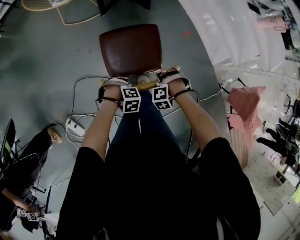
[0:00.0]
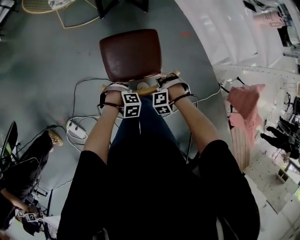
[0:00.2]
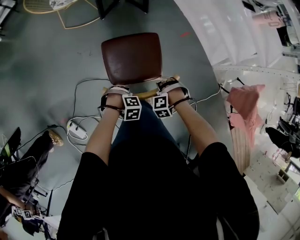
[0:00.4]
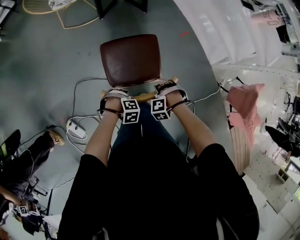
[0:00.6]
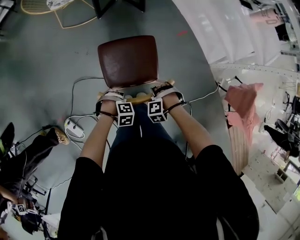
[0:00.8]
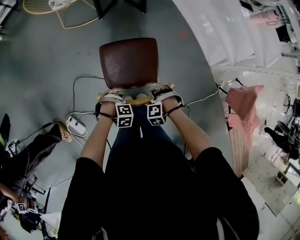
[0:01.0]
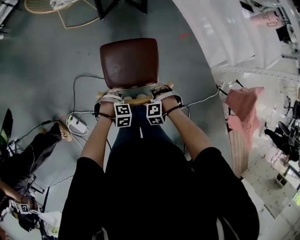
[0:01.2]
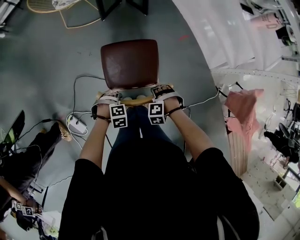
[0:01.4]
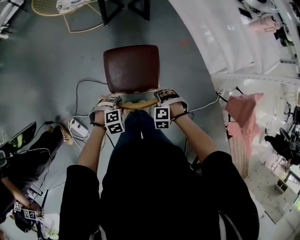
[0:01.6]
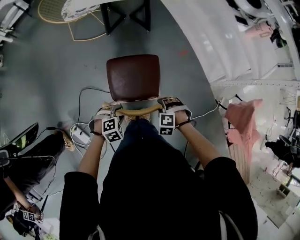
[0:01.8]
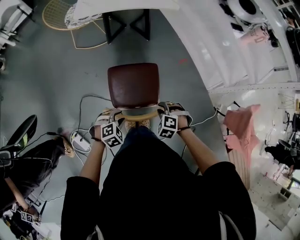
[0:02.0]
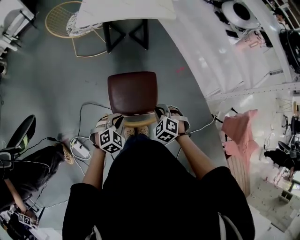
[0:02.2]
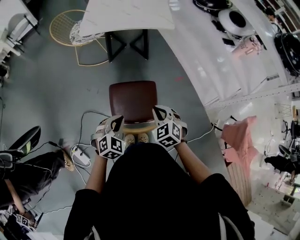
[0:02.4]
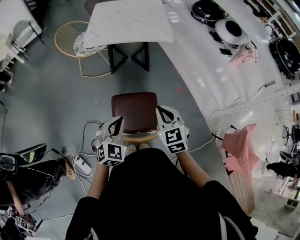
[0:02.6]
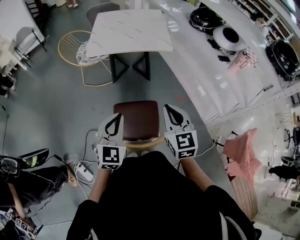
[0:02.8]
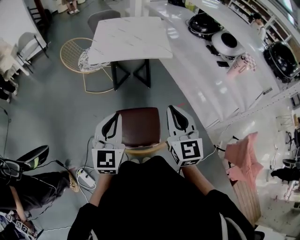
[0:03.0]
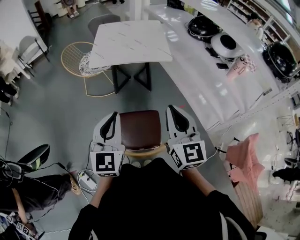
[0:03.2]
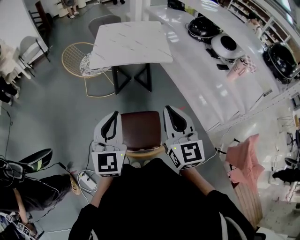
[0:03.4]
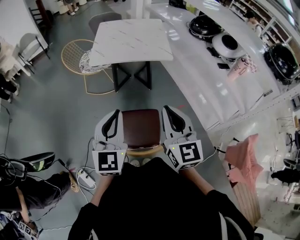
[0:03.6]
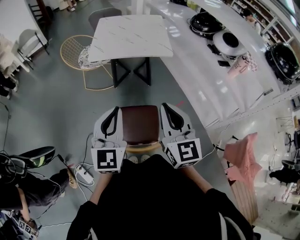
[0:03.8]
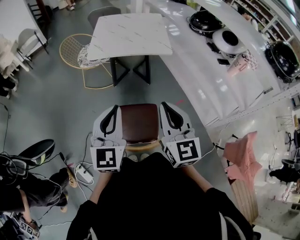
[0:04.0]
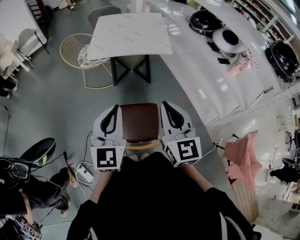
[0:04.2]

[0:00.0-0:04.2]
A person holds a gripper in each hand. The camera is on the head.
0:00.0 to 0:01.4: The right gripper moves some 10 cm. Meanwhile the left gripper shifts by some 10 cm, and opens its fingers.
0:01.4 to 0:02.8: The grippers both shift upward by roughly 40 cm. The right gripper angles its fingers upward, by some 70 degrees, and closes its fingers, while the left gripper tilts its fingers roughly 70 degrees upward, and closes its fingers.
0:02.8 to 0:04.2: Both grippers travel together upward, approximately 10 cm.

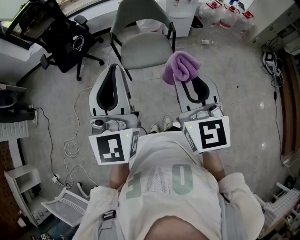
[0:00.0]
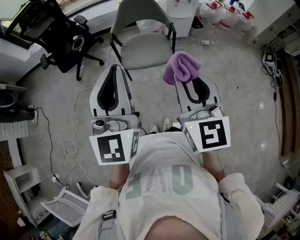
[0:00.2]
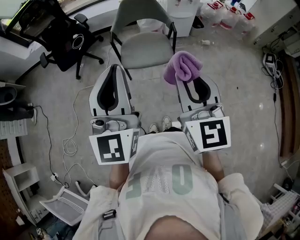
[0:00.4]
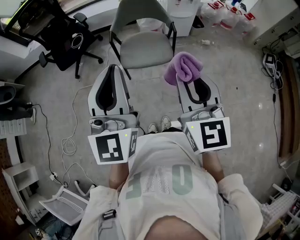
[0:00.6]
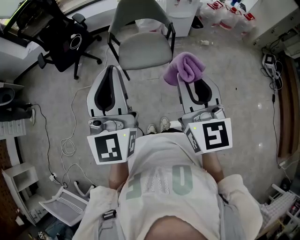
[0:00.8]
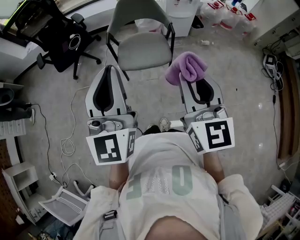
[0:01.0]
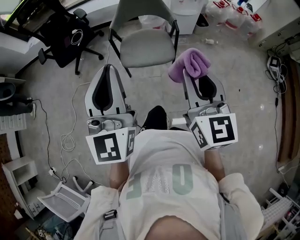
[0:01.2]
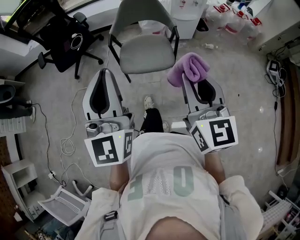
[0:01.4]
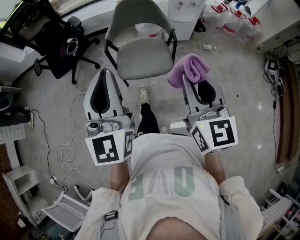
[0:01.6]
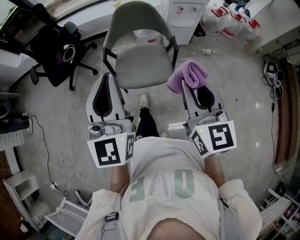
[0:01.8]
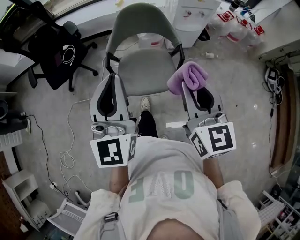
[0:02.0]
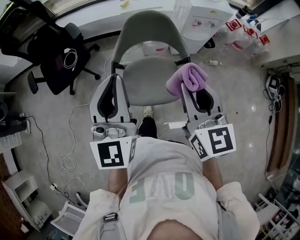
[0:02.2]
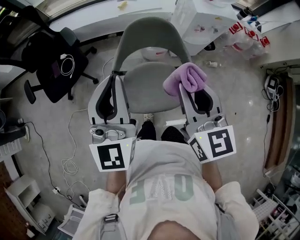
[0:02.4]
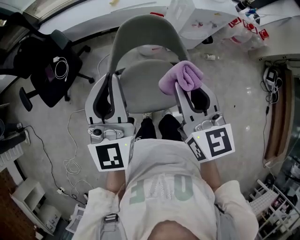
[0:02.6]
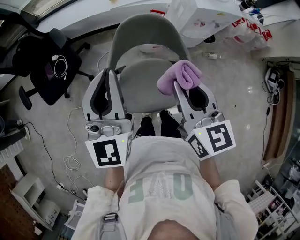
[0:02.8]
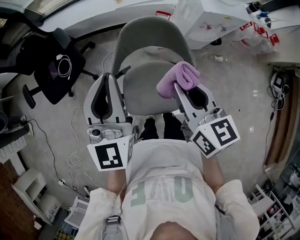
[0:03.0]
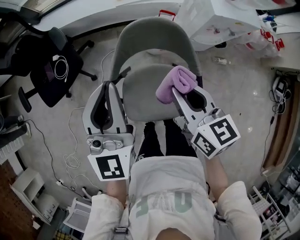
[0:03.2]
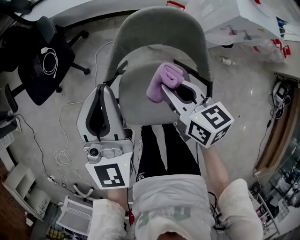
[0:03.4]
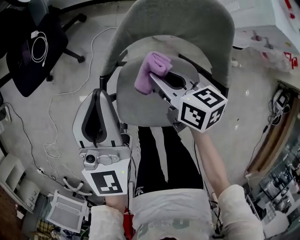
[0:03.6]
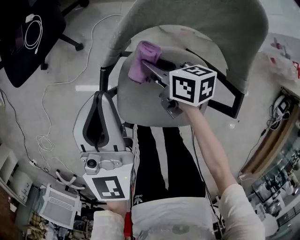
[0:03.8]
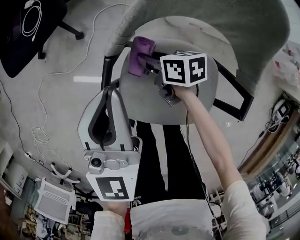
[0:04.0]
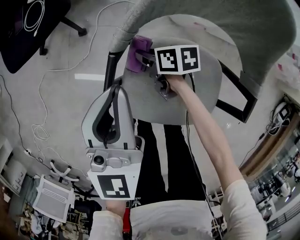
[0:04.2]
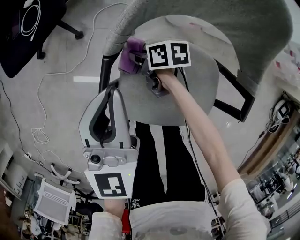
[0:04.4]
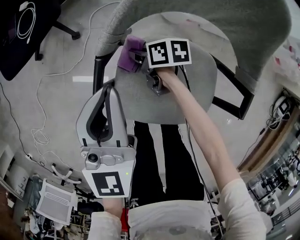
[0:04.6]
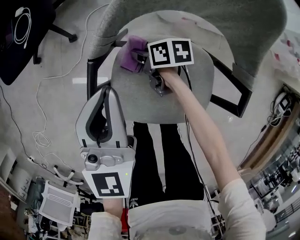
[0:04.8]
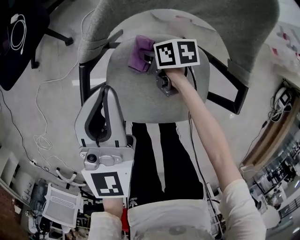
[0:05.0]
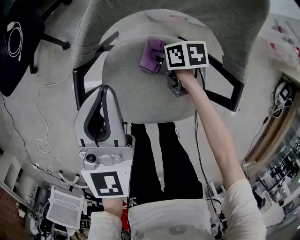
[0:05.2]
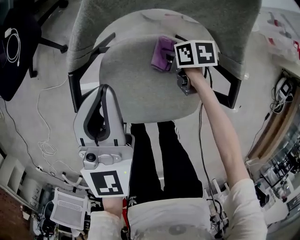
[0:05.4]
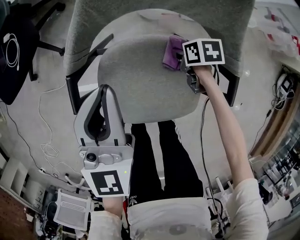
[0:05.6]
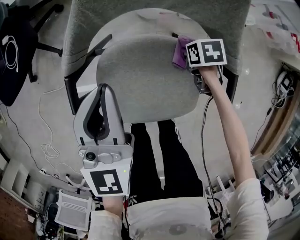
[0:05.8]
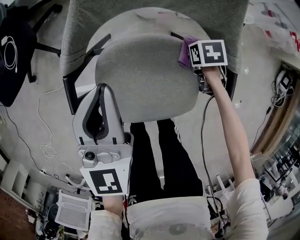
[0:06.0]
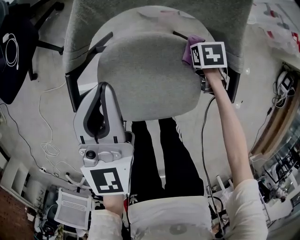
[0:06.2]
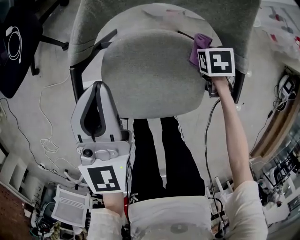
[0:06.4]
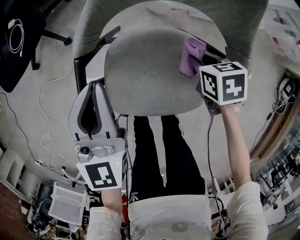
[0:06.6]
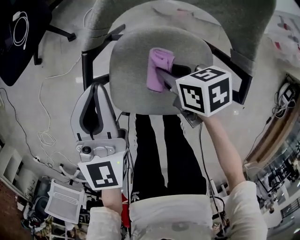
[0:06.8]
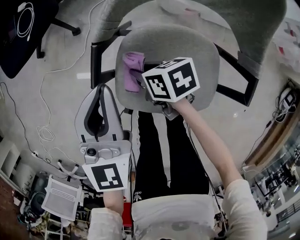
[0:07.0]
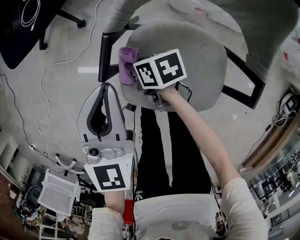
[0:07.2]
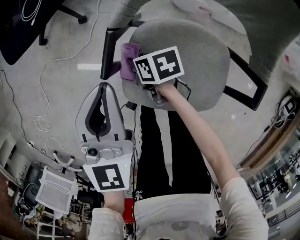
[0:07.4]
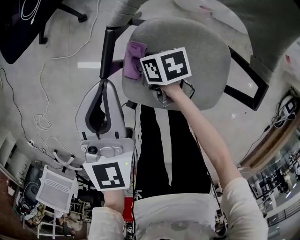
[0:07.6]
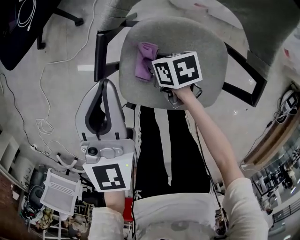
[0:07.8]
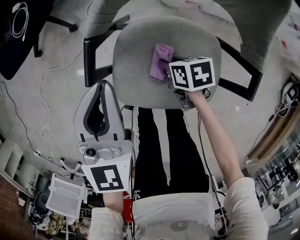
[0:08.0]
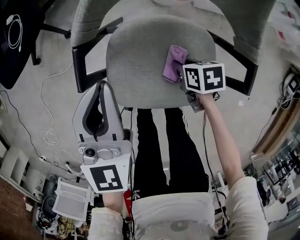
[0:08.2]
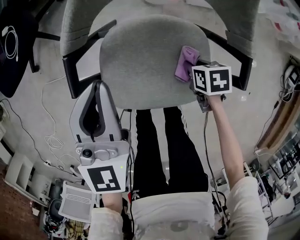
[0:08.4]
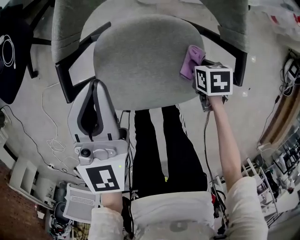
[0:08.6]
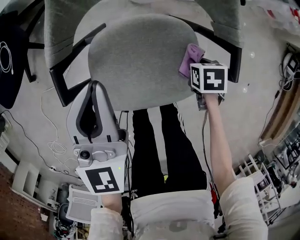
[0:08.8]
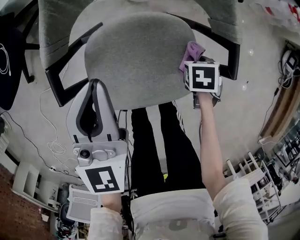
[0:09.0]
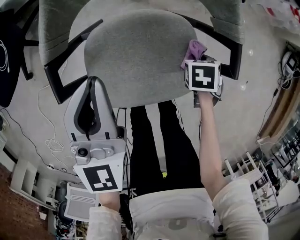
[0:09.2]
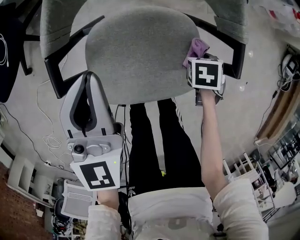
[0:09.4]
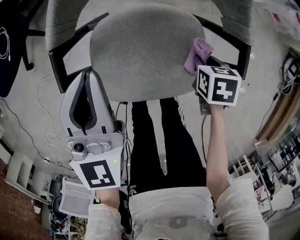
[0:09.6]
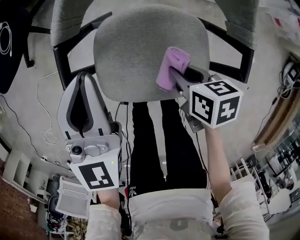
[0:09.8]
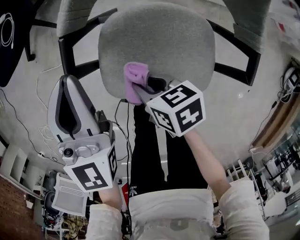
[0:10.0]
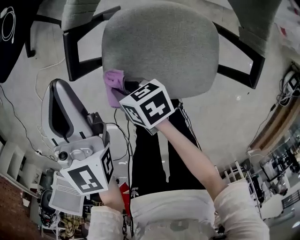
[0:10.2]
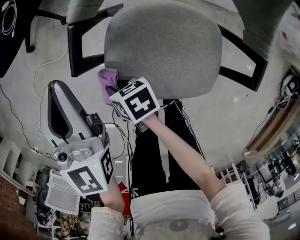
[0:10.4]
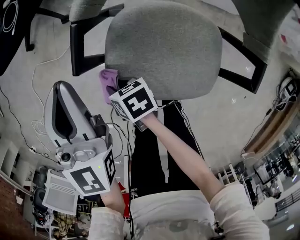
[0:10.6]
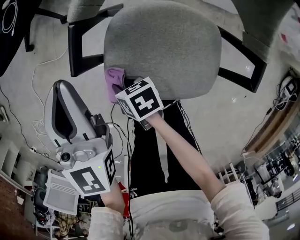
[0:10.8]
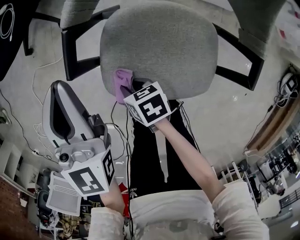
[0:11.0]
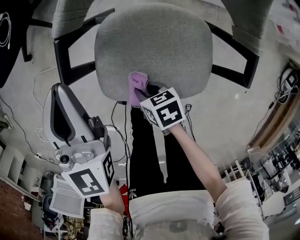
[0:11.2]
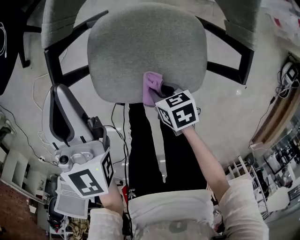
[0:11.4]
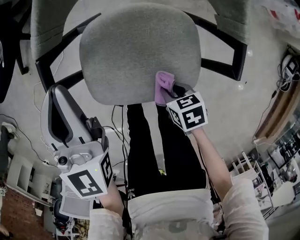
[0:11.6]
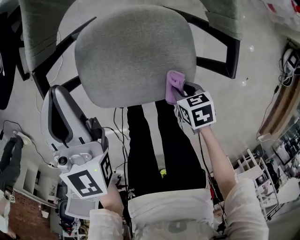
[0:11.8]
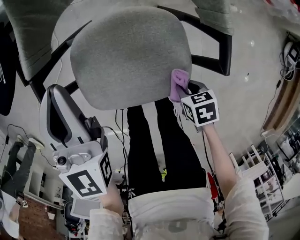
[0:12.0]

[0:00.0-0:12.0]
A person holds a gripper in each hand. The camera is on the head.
0:00.0 to 0:01.6: The left gripper moves forward, approximately 15 cm; the right gripper shifts some 15 cm forward and to the right.
0:01.6 to 0:03.0: Both grippers are carried forward, some 40 cm. The right gripper changes its angle by some 20 degrees.
0:03.0 to 0:04.4: The left gripper heads downward, covering about 35 cm. The right gripper heads downward, covering some 50 cm, and changes its angle by approximately 60 degrees.
0:04.4 to 0:06.0: The left gripper changes place by some 10 cm. Meanwhile the right gripper ends up approximately 35 cm from where it was, and tips its fingers downward by some 40 degrees.
0:06.0 to 0:07.6: The right gripper reaches some 10 cm upward, then returns, and points its fingers roughly 30 degrees further upward. The left gripper shifts by approximately 15 cm.
0:07.6 to 0:09.0: The left gripper moves some 15 cm; the right gripper ends up about 35 cm from where it was, and points its fingers roughly 30 degrees further downward.
0:09.0 to 0:10.4: The left gripper changes place by some 15 cm, and swivels approximately 20 degrees, while the right gripper travels upward and back again, roughly 10 cm each way, and angles its fingers upward, by roughly 40 degrees.
0:10.4 to 0:12.0: The right gripper moves approximately 35 cm, and turns by approximately 30 degrees. Meanwhile the left gripper ends up some 15 cm from where it was.

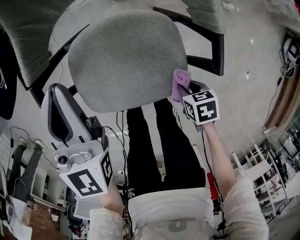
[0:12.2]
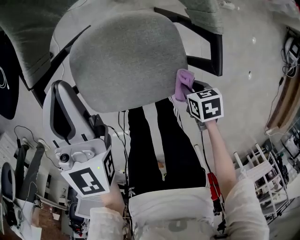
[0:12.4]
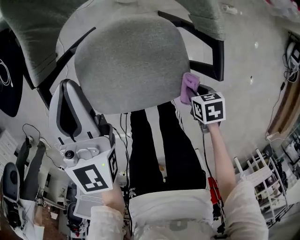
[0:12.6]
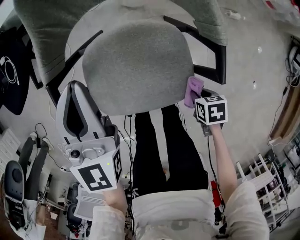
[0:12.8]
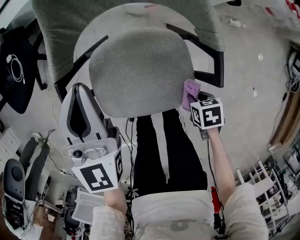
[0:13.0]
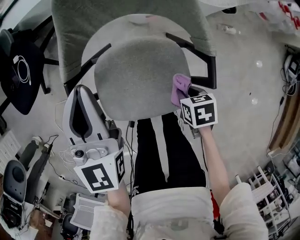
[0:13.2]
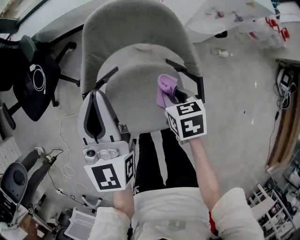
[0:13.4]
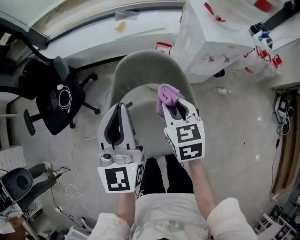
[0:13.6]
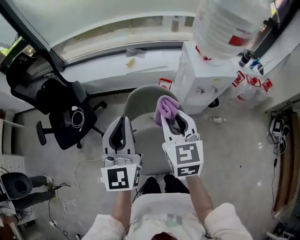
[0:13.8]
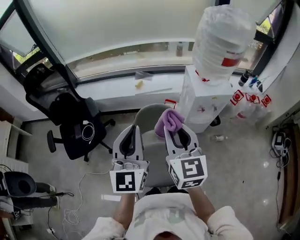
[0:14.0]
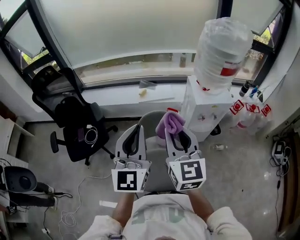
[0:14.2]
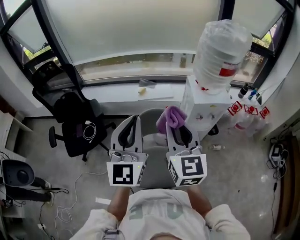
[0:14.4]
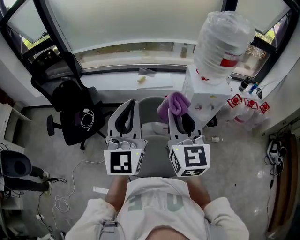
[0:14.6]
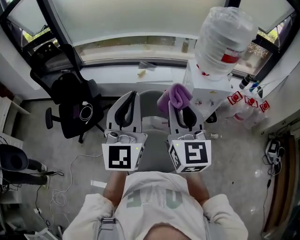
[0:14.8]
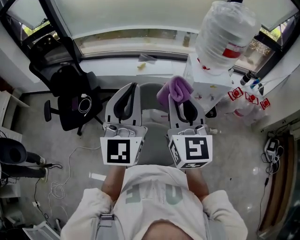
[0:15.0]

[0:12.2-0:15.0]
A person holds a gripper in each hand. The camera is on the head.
0:12.2 to 0:13.6: Both grippers move upward, some 30 cm. The right gripper points its fingers roughly 40 degrees further upward.
0:13.6 to 0:15.0: The grippers both shift upward by about 30 cm. The left gripper changes its angle by approximately 20 degrees. Meanwhile the right gripper points its fingers approximately 50 degrees further upward.

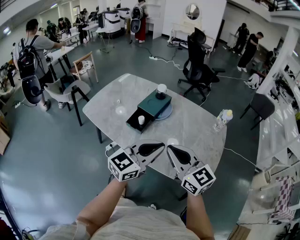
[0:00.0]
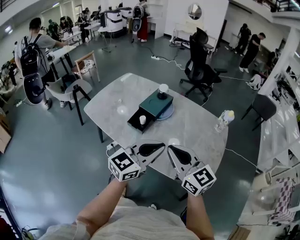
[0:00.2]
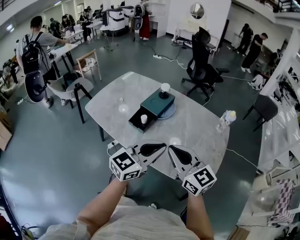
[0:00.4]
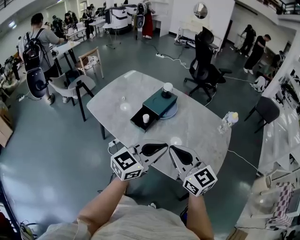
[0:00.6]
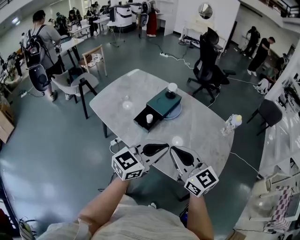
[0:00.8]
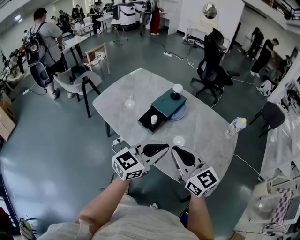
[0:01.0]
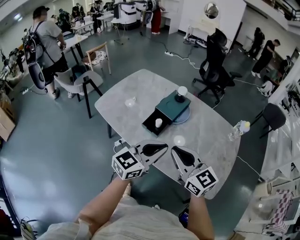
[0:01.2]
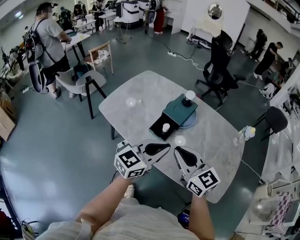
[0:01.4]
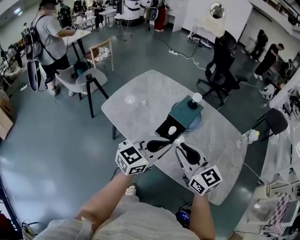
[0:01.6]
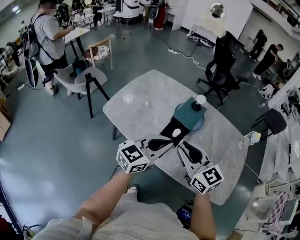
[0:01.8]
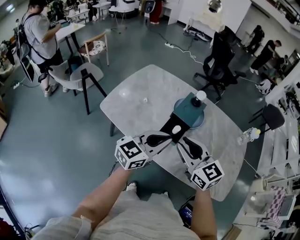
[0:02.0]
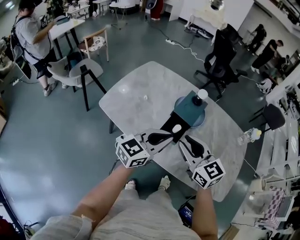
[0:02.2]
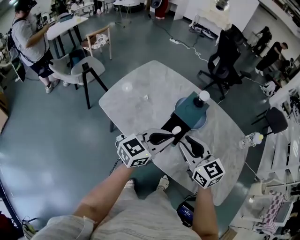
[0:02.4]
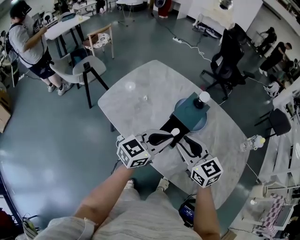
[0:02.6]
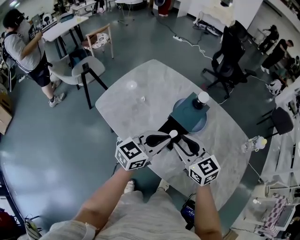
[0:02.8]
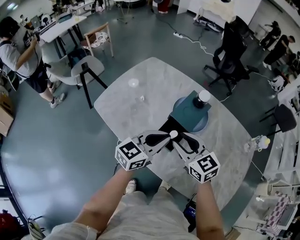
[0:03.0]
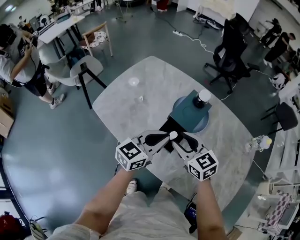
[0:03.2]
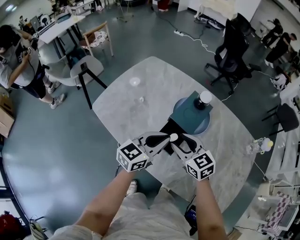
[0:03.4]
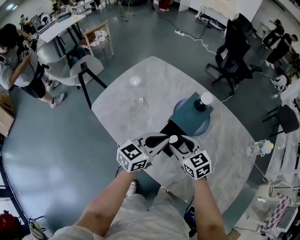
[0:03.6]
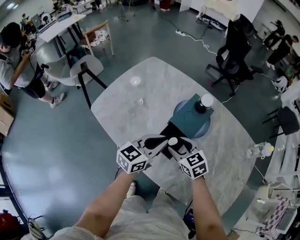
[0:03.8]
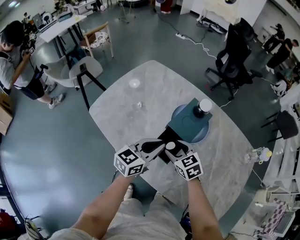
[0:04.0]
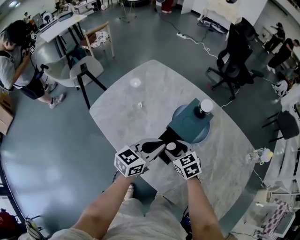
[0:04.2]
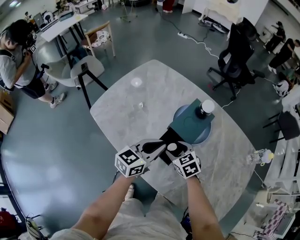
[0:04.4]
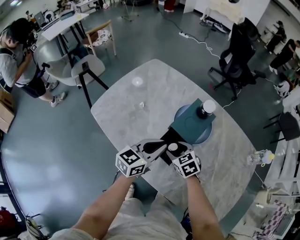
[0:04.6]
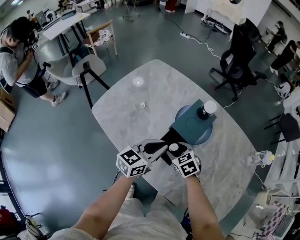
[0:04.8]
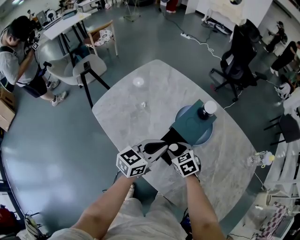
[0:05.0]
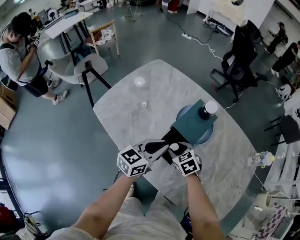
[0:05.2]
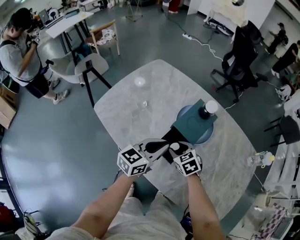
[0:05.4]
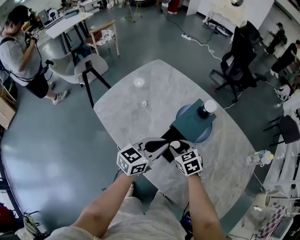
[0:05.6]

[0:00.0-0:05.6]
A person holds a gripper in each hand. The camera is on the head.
0:00.0 to 0:01.4: Both grippers move to the left and forward, roughly 15 cm.
0:01.4 to 0:02.8: The left gripper shifts about 15 cm forward, to the left and downward, while the right gripper is displaced forward, downward and to the left by about 15 cm, and opens its fingers.
0:02.8 to 0:04.2: The left gripper goes some 10 cm downward and forward; the right gripper is displaced downward and forward by about 20 cm, and rotates roughly 20 degrees.
0:04.2 to 0:05.6: The grippers make only small movements.
